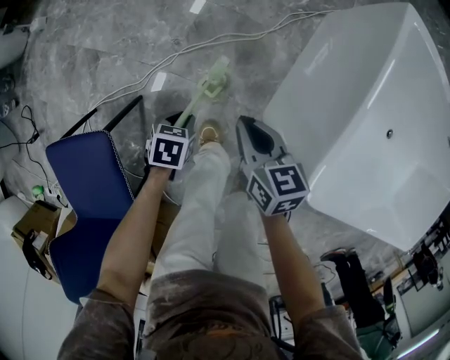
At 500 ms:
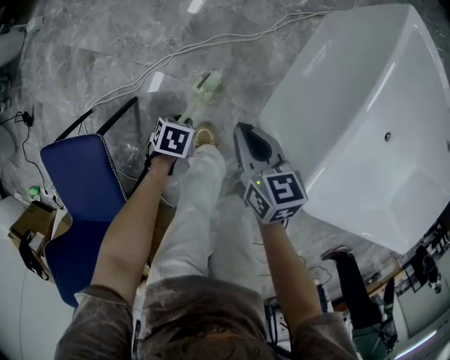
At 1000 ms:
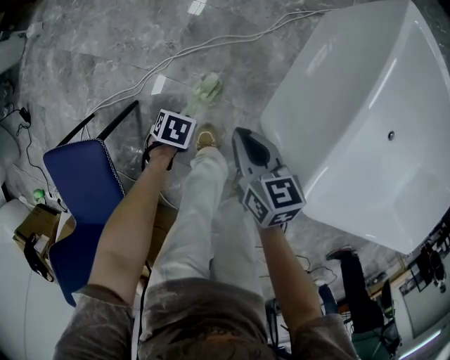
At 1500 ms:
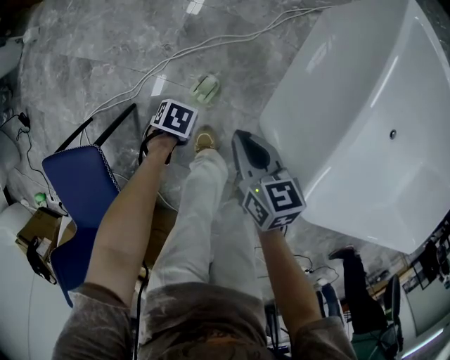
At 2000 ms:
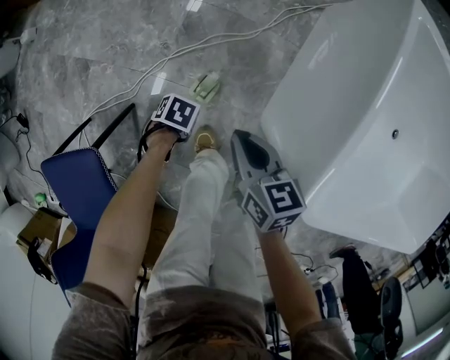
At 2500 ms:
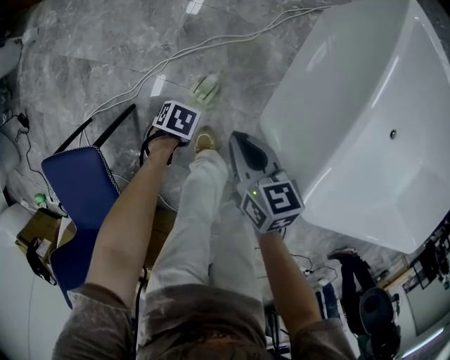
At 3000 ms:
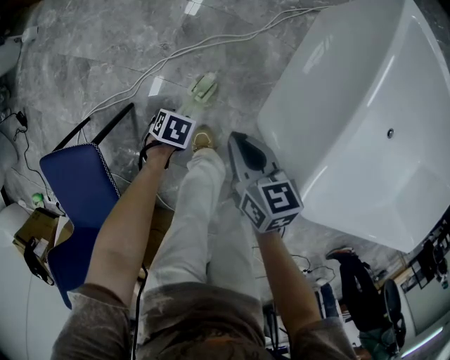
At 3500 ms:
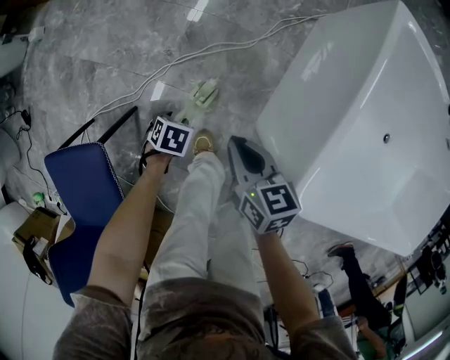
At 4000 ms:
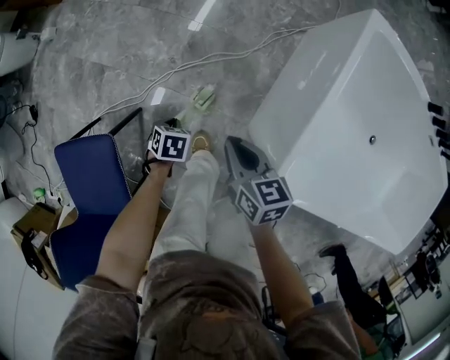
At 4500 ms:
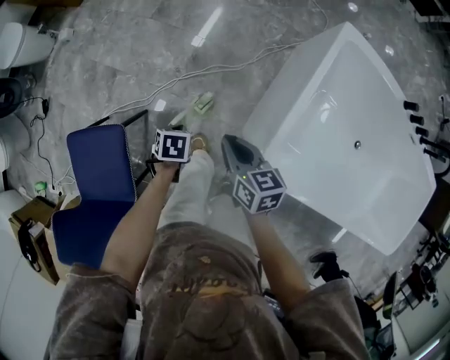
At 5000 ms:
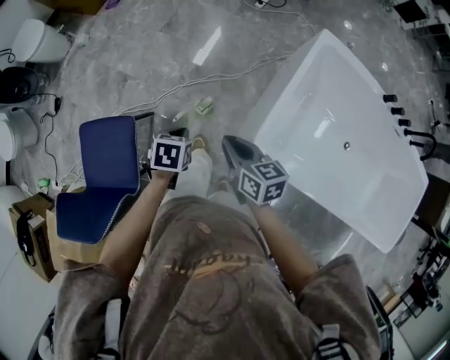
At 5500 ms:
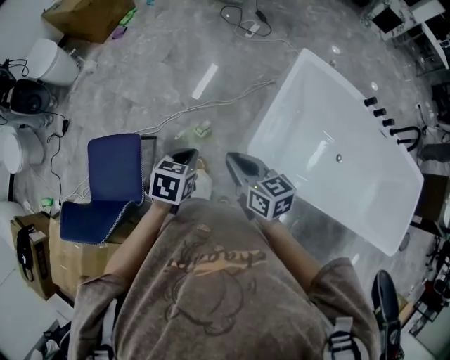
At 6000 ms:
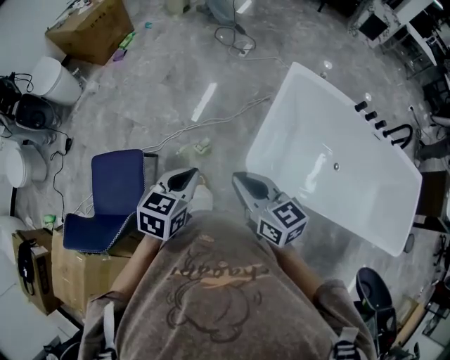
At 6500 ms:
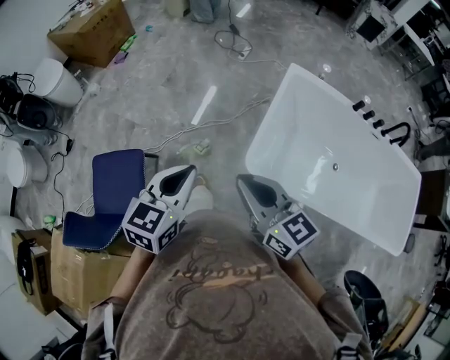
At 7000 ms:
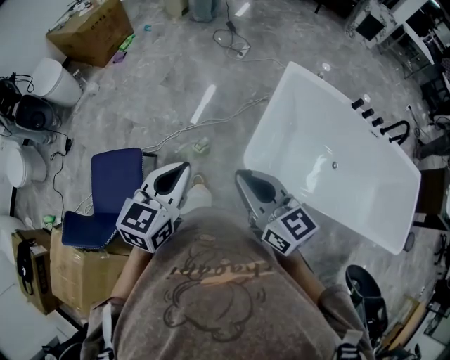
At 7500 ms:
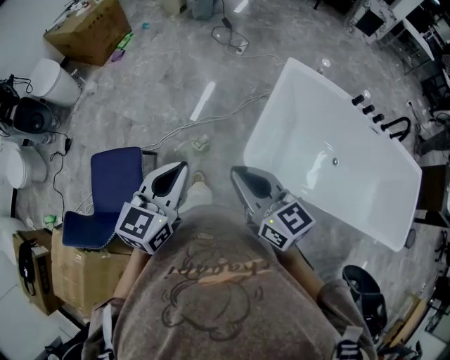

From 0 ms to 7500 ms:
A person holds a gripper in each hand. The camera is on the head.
From 0 ms to 2000 ms: The left gripper travels downward by some 10 cm, and rotates approximately 30 degrees.
From 2000 ms to 4000 ms: The grippers both shift upward by roughly 10 cm. The left gripper swivels approximately 20 degrees, and closes its fingers.
From 4000 ms to 5500 ms: The grippers both shift upward by some 35 cm. The left gripper turns by roughly 30 degrees.
From 5500 ms to 7500 ms: The right gripper is displaced upward and backward by some 15 cm; the left gripper heads upward, covering some 20 cm, and points its fingers some 40 degrees further upward.

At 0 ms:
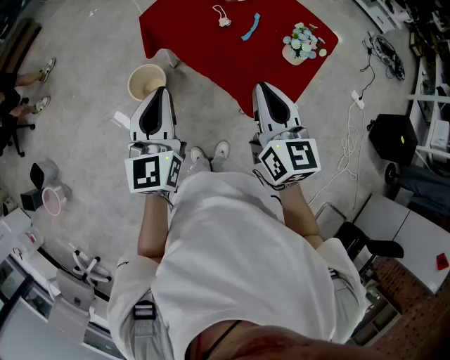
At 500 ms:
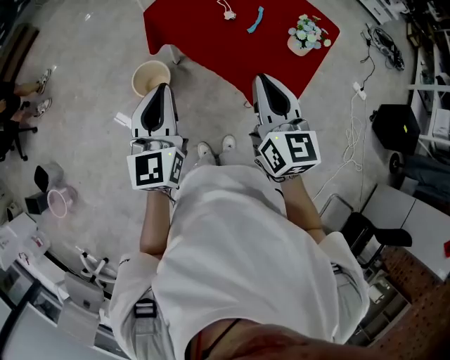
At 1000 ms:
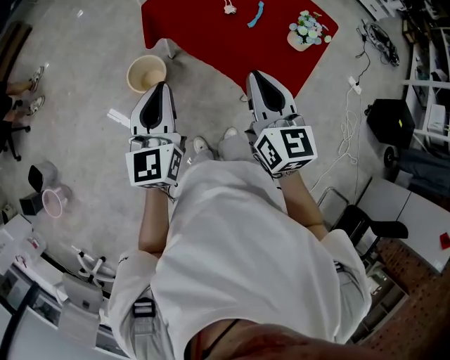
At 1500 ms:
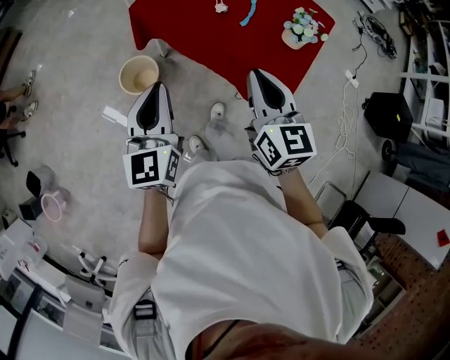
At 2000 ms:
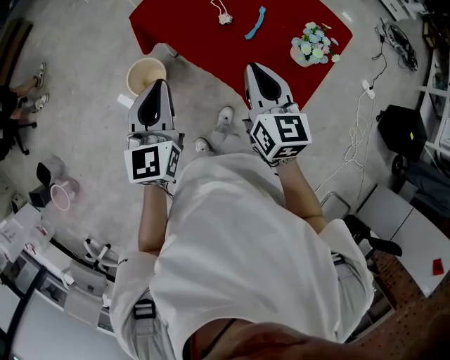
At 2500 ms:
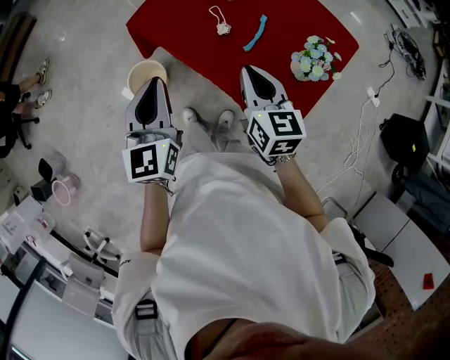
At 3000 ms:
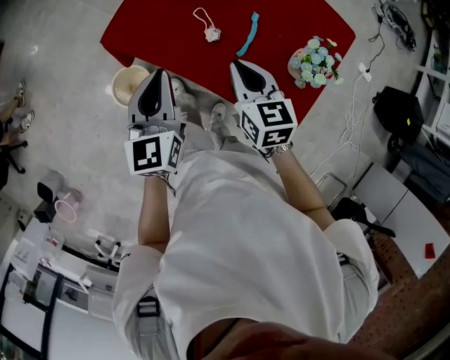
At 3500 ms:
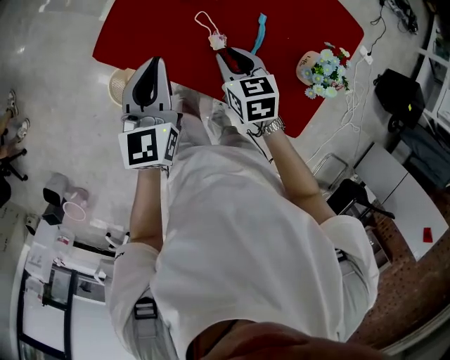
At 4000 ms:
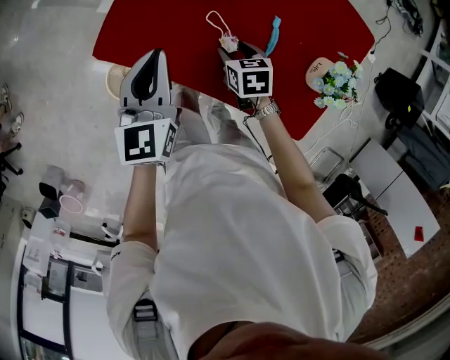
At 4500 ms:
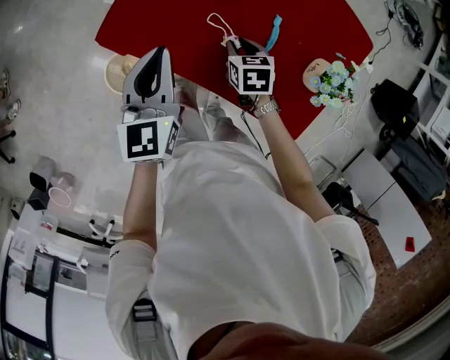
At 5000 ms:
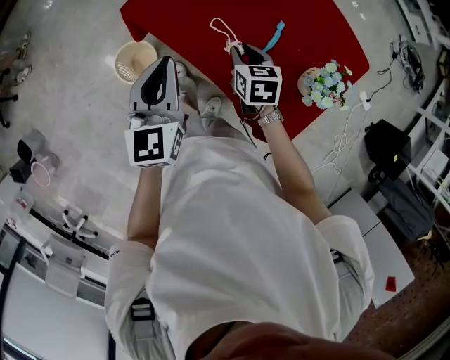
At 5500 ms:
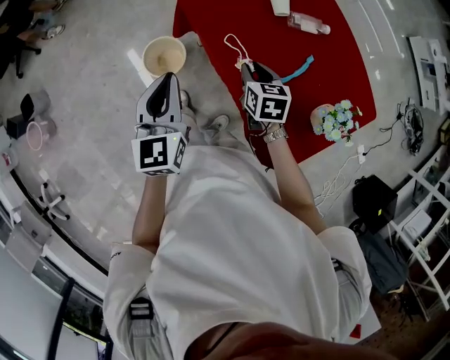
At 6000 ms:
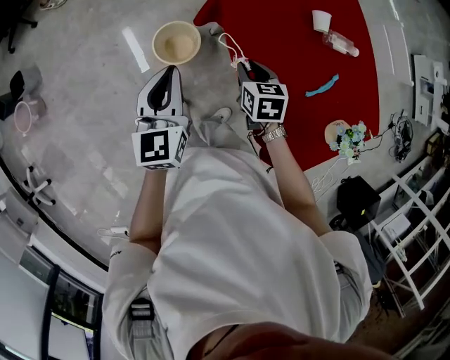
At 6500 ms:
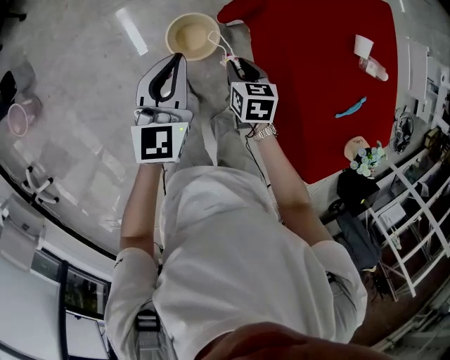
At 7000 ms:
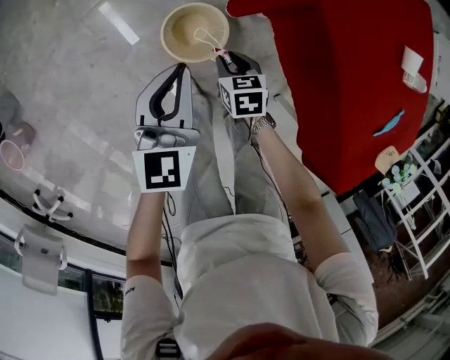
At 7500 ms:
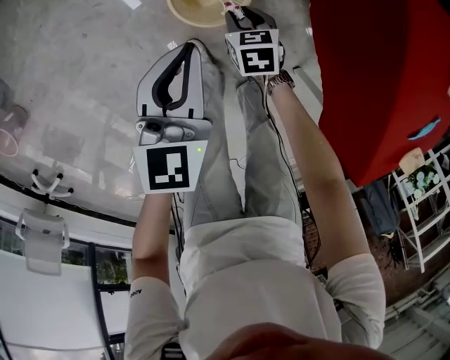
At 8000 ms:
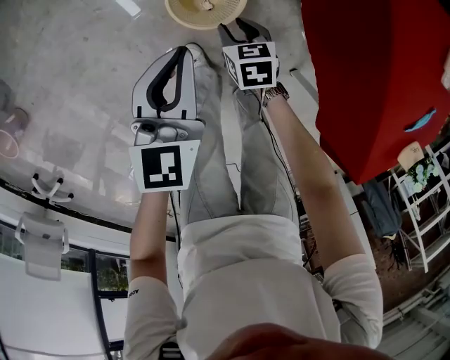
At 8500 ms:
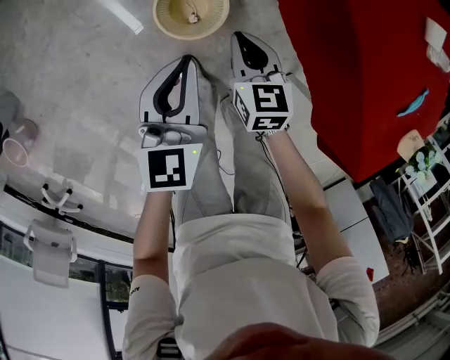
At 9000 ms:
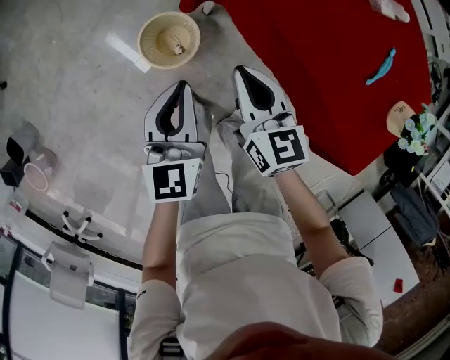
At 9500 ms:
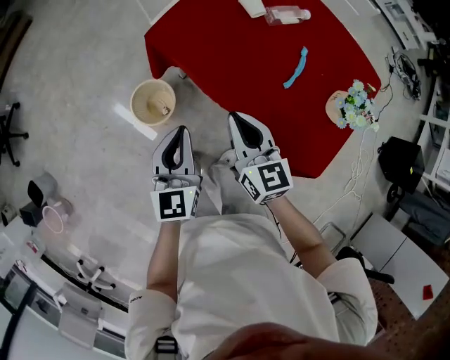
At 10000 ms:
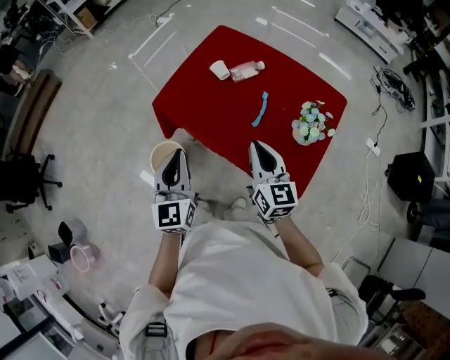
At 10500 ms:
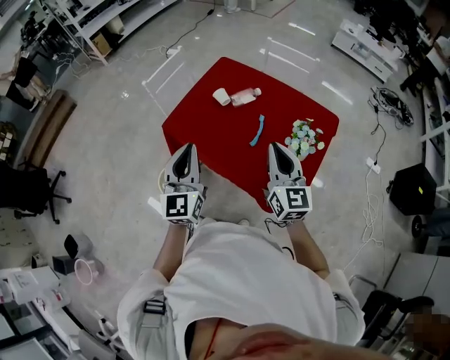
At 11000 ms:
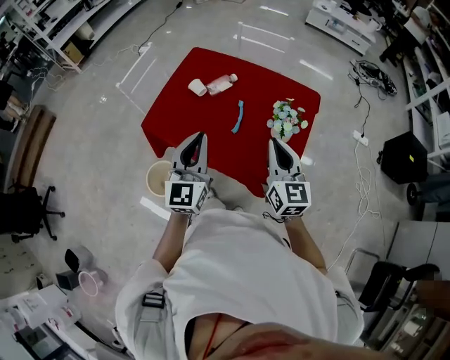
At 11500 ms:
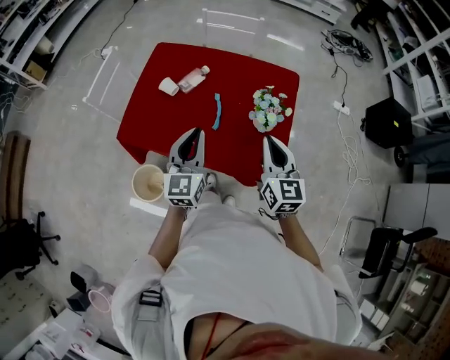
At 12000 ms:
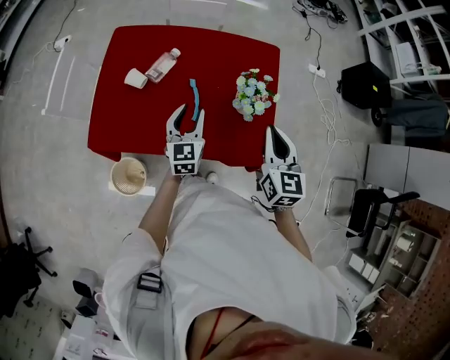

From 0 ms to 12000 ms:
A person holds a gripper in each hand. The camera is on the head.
From 0 ms to 2000 ms: The left gripper shifts about 10 cm forward; the right gripper heads forward and downward, covering some 15 cm.
From 2000 ms to 4000 ms: The right gripper moves downward and forward, about 40 cm, tilts its fingers roughly 40 degrees downward, and opens up. The left gripper shifts about 35 cm forward and downward.
From 4000 ms to 6000 ms: The right gripper shifts by roughly 25 cm, turns by approximately 30 degrees, and closes its fingers. Meanwhile the left gripper changes place by roughly 30 cm, and rotates roughly 40 degrees.
From 6000 ms to 8000 ms: The two grippers go roughly 35 cm downward and to the left.
From 8000 ms to 10000 ms: The grippers both shift upward by approximately 50 cm. The left gripper changes its angle by roughly 30 degrees. Meanwhile the right gripper points its fingers roughly 60 degrees further upward, and closes its fingers.
From 10000 ms to 12000 ms: The right gripper goes upward and returns, about 10 cm each way, and rotates approximately 40 degrees, while the left gripper ends up about 30 cm from where it was, turns by about 40 degrees, and opens up.

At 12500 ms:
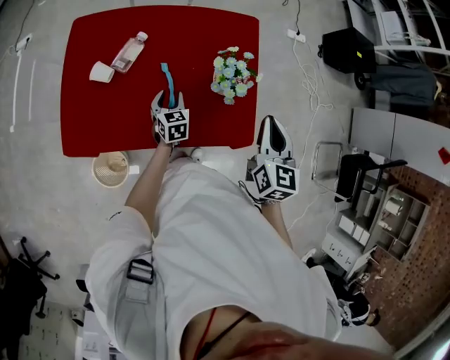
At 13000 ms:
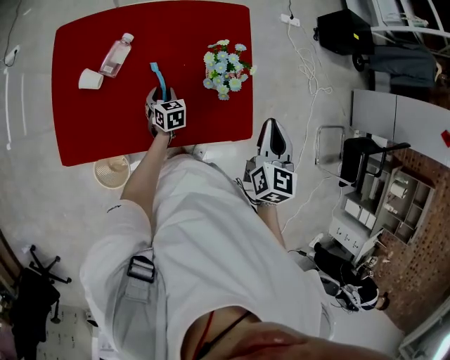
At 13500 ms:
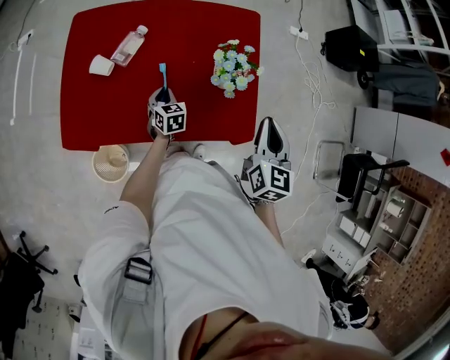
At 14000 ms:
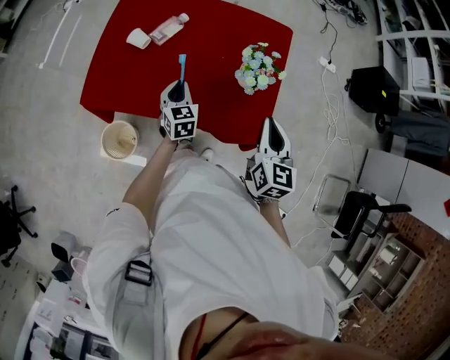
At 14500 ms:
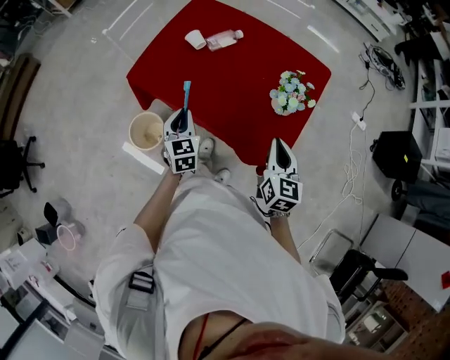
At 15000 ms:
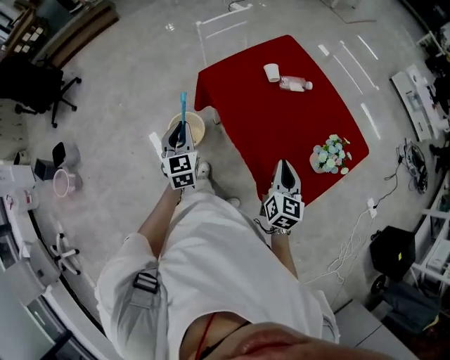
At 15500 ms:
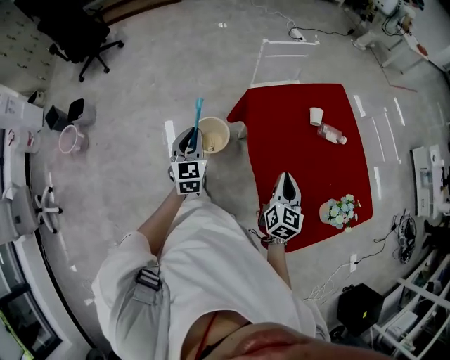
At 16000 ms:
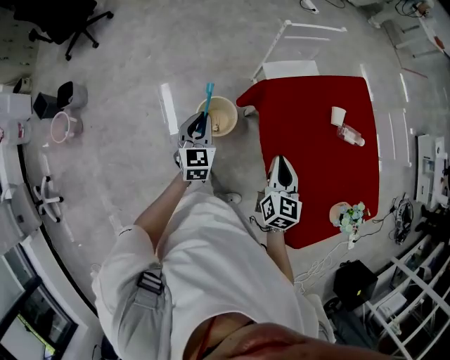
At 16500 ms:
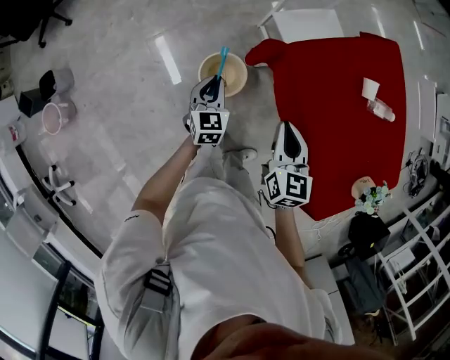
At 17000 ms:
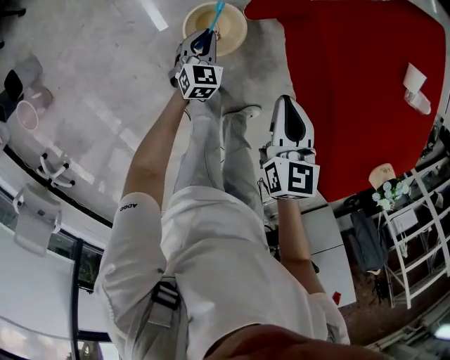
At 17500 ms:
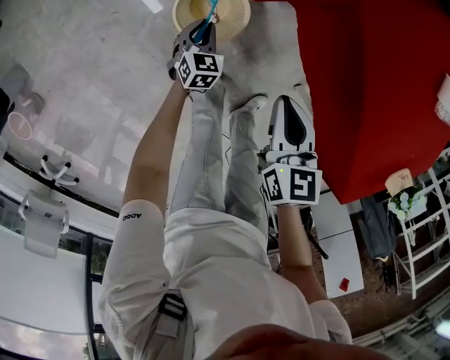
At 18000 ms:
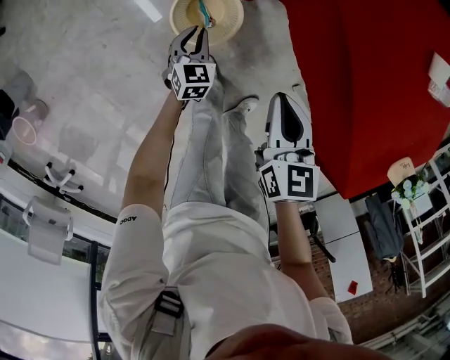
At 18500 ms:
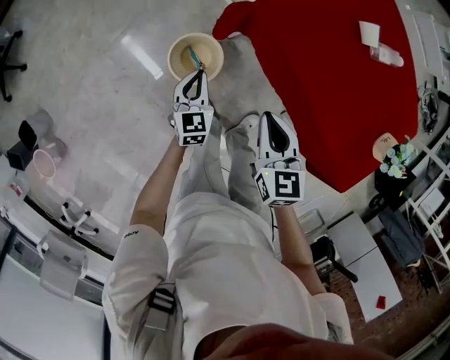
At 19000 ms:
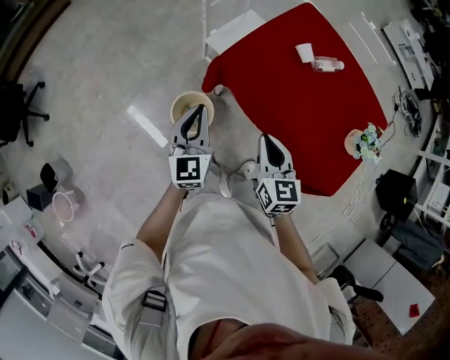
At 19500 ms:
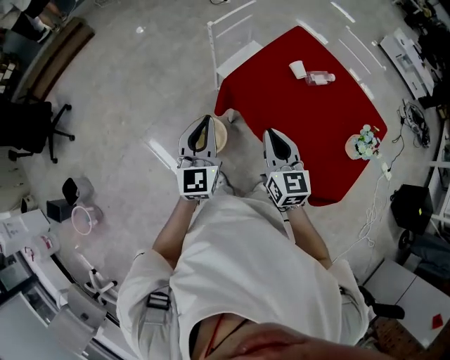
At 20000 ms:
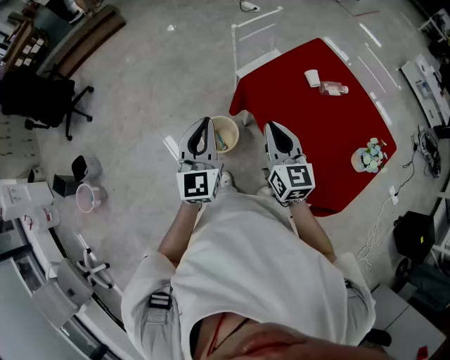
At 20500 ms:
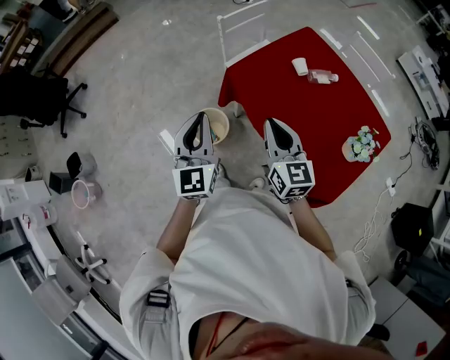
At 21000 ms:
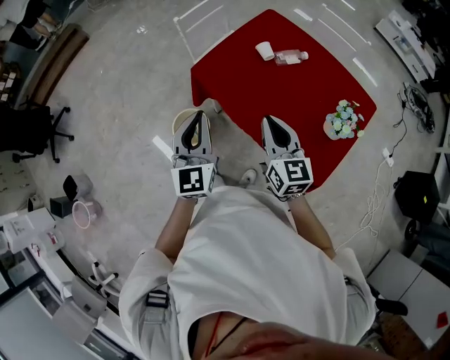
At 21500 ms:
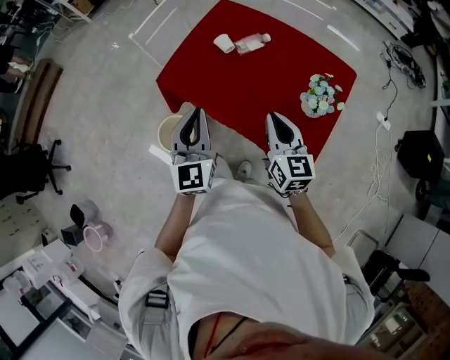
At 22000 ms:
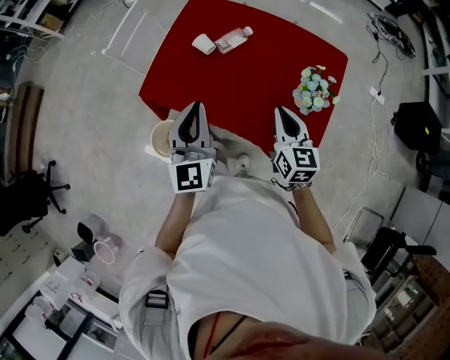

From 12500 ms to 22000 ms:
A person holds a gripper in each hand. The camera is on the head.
From 12500 ms to 14500 ms: The right gripper shifts by some 10 cm, and changes its angle by about 30 degrees. The left gripper changes place by about 25 cm, and rotates about 30 degrees.
From 14500 ms to 16500 ms: The pair of grippers is taken about 50 cm. The right gripper rotates about 40 degrees, while the left gripper turns by about 30 degrees.
From 16500 ms to 18000 ms: The right gripper is displaced downward by about 20 cm, while the left gripper goes about 30 cm downward.
From 18000 ms to 20000 ms: The right gripper moves upward, approximately 35 cm, and tilts its fingers approximately 40 degrees upward, while the left gripper goes approximately 60 cm upward, and angles its fingers upward, by some 50 degrees.
From 20000 ms to 22000 ms: The right gripper moves some 35 cm, and turns by approximately 40 degrees. The left gripper shifts by approximately 35 cm, and turns by some 30 degrees.
